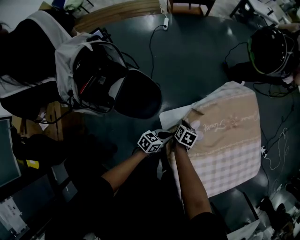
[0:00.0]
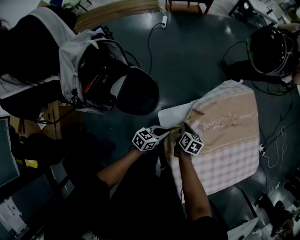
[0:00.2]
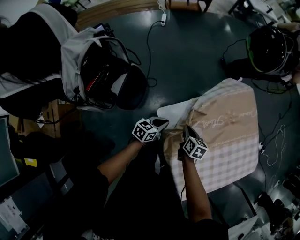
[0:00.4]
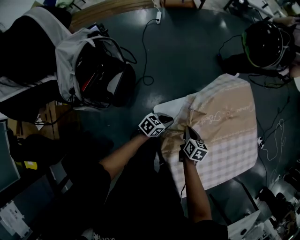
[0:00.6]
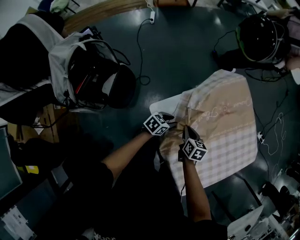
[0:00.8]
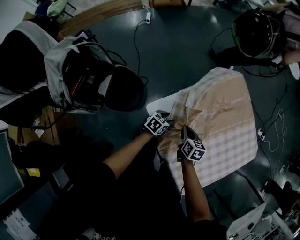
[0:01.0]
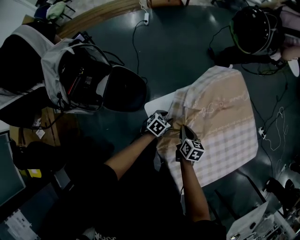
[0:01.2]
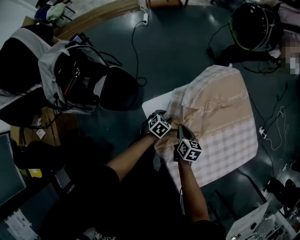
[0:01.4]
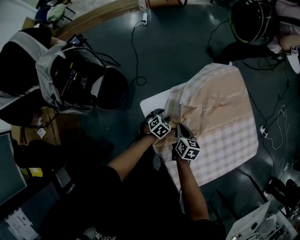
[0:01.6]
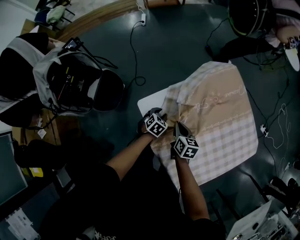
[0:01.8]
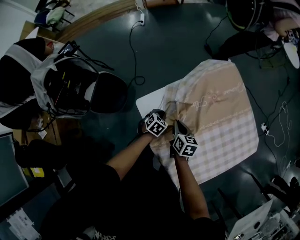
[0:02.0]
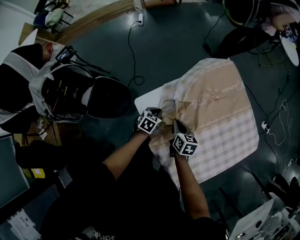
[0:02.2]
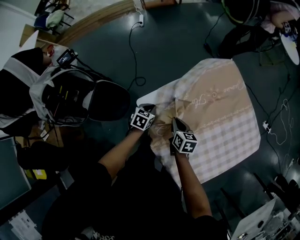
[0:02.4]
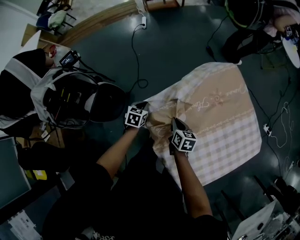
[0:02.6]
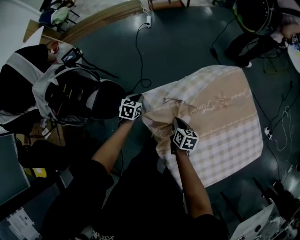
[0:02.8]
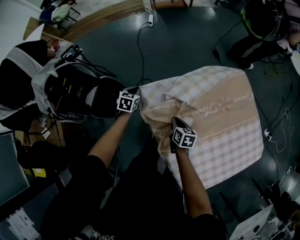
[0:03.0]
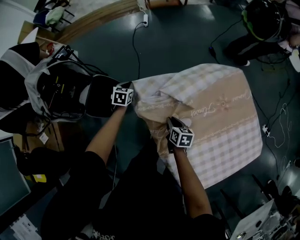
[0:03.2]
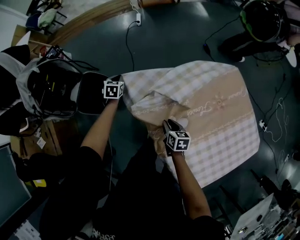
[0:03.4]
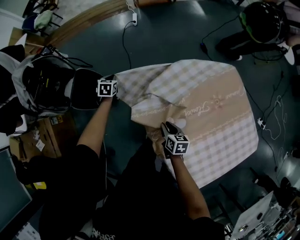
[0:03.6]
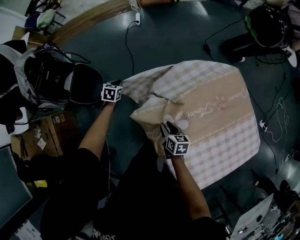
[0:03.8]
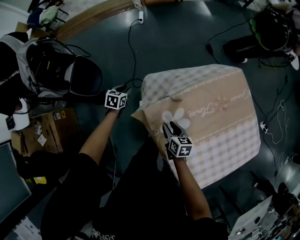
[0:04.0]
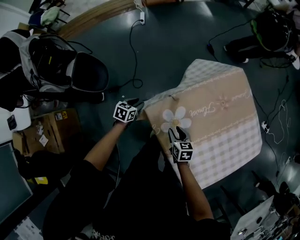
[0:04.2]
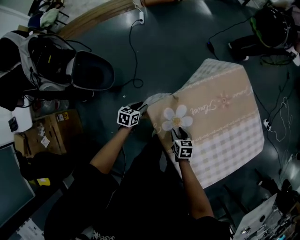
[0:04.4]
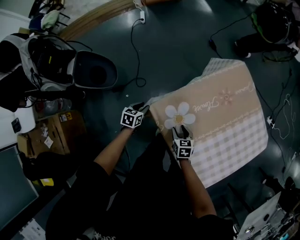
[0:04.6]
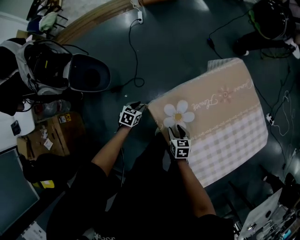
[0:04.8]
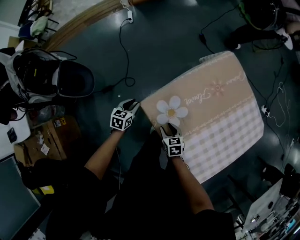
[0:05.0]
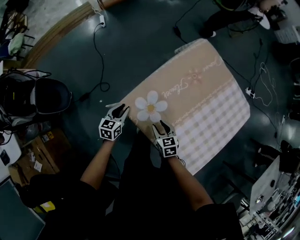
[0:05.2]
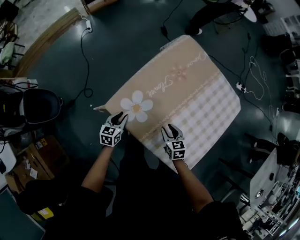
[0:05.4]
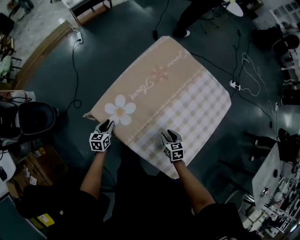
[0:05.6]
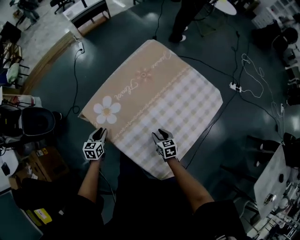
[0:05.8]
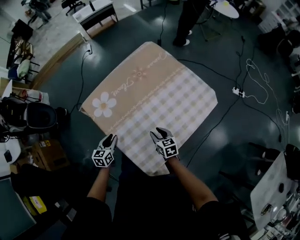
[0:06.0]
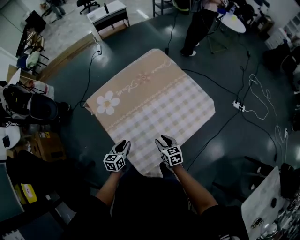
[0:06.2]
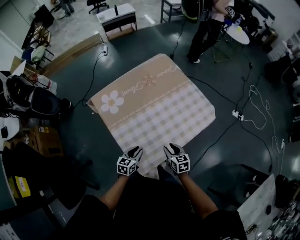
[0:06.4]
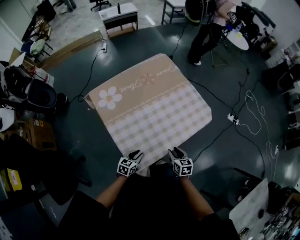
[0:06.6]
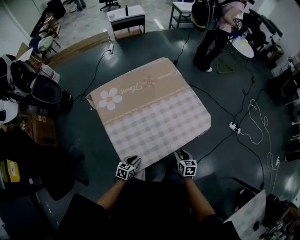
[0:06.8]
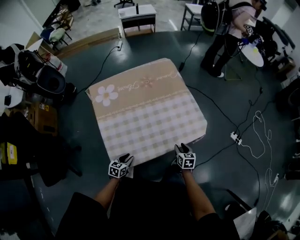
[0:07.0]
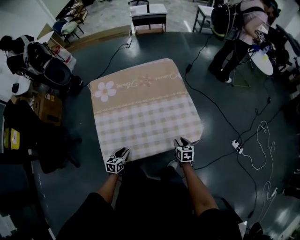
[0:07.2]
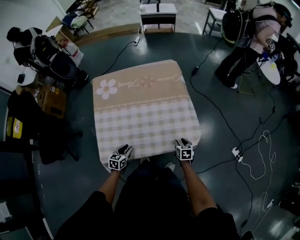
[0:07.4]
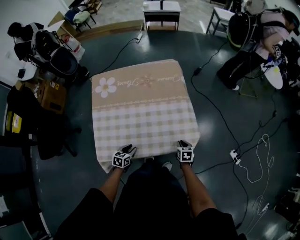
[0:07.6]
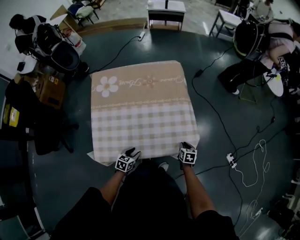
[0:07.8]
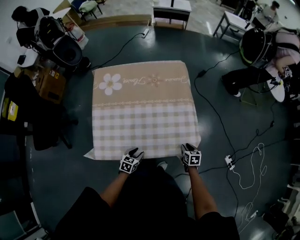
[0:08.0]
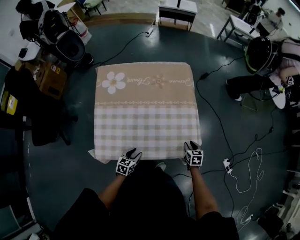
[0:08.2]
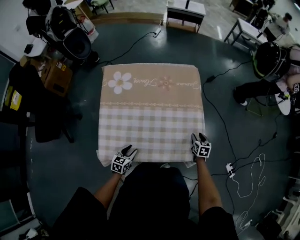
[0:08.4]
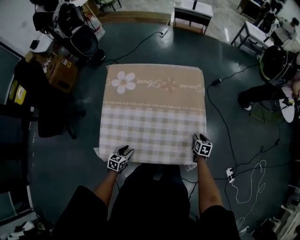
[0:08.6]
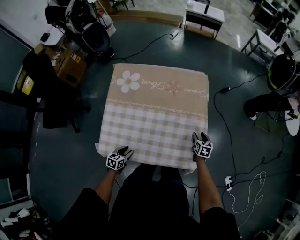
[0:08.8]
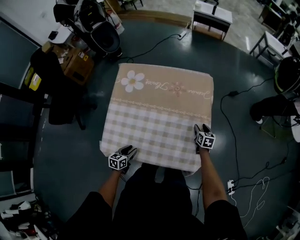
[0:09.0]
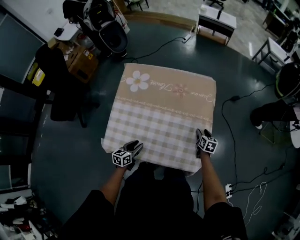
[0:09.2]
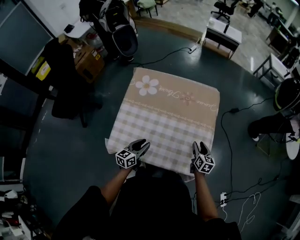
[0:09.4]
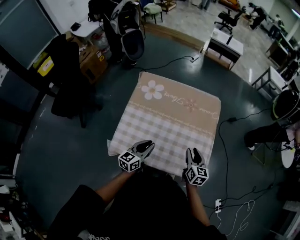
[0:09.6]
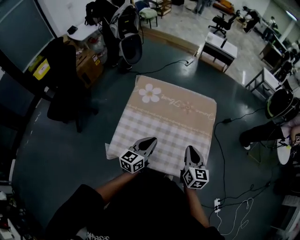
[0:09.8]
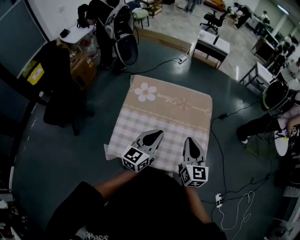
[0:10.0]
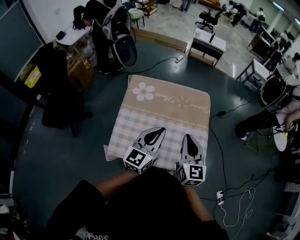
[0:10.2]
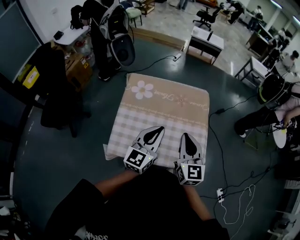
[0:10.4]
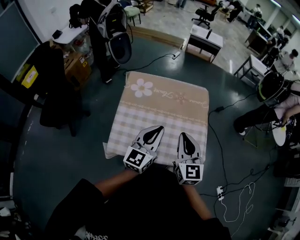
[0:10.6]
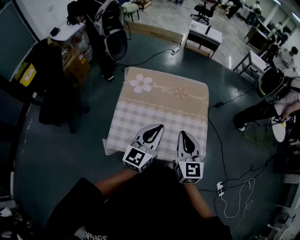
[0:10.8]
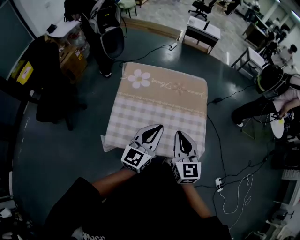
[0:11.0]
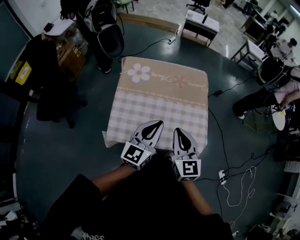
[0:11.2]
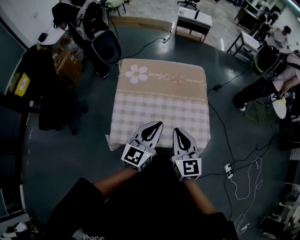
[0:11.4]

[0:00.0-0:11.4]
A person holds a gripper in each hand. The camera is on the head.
0:00.0 to 0:01.4: The left gripper shifts some 5 cm forward, angles its fingers downward, by approximately 30 degrees, and opens. Meanwhile the right gripper travels to the right and upward by some 15 cm.
0:01.4 to 0:02.8: The right gripper changes place by about 5 cm, while the left gripper travels to the left by approximately 20 cm, swivels some 30 degrees, and closes its fingers.
0:02.8 to 0:04.2: The left gripper travels forward and back again, approximately 15 cm each way, and opens. The right gripper opens its fingers.
0:04.2 to 0:05.6: Both grippers move to the right and backward, roughly 25 cm.
0:05.6 to 0:07.2: The left gripper travels upward and back again, some 10 cm each way, and changes its angle by about 30 degrees. The right gripper goes upward and returns, approximately 10 cm each way, and turns by roughly 20 degrees.
0:07.2 to 0:08.6: The right gripper heads forward, covering some 20 cm, and closes, then opens again; the left gripper goes to the right and returns, roughly 15 cm each way.
0:08.6 to 0:10.0: The left gripper travels upward by approximately 40 cm, angles its fingers upward, by some 40 degrees, and closes, while the right gripper shifts roughly 50 cm upward and to the left, angles its fingers upward, by roughly 40 degrees, and closes.
0:10.0 to 0:11.4: The right gripper shifts approximately 10 cm backward and to the left; the left gripper moves backward, some 10 cm.

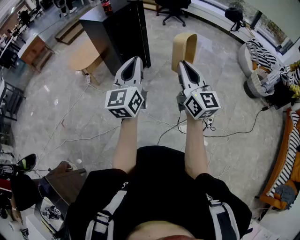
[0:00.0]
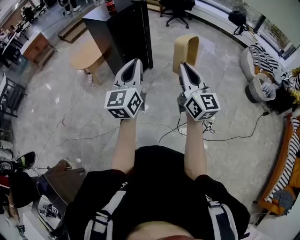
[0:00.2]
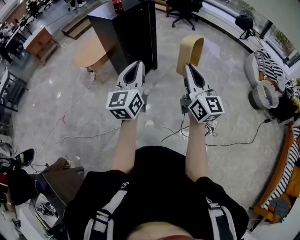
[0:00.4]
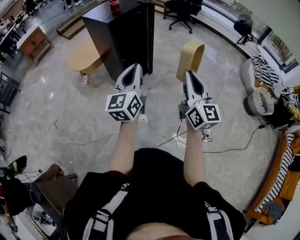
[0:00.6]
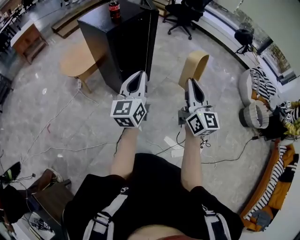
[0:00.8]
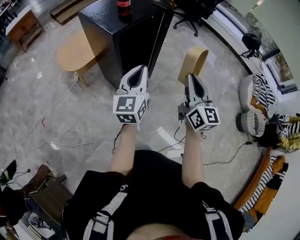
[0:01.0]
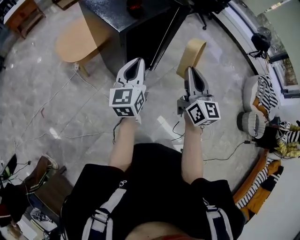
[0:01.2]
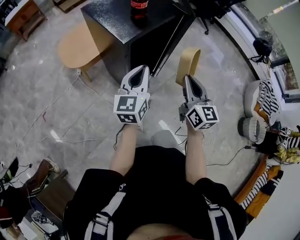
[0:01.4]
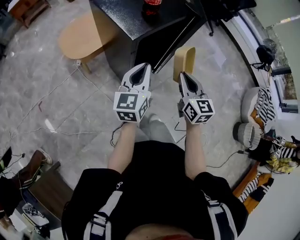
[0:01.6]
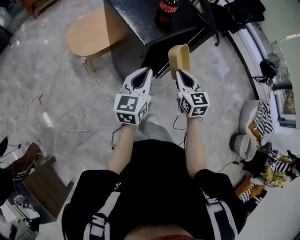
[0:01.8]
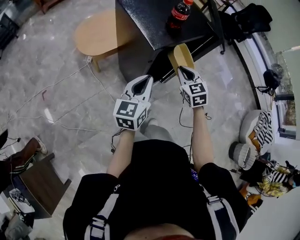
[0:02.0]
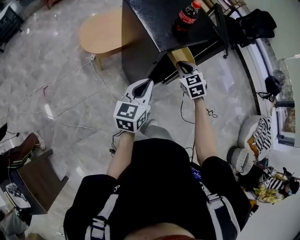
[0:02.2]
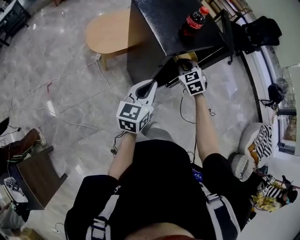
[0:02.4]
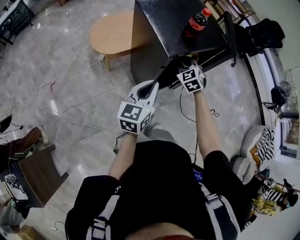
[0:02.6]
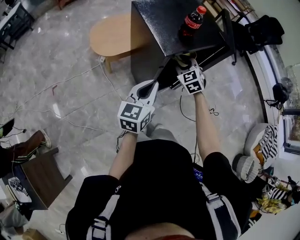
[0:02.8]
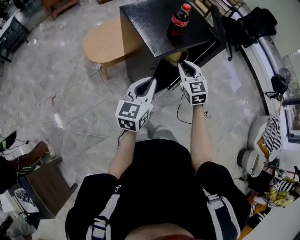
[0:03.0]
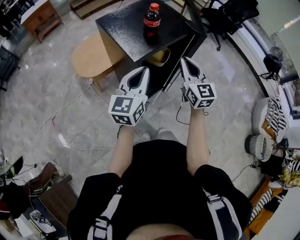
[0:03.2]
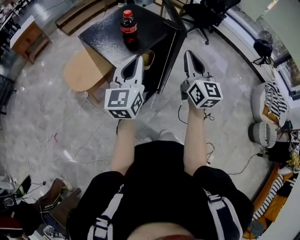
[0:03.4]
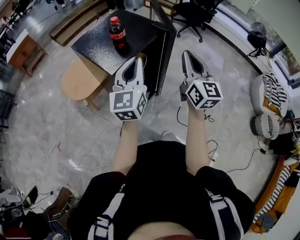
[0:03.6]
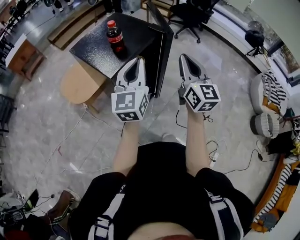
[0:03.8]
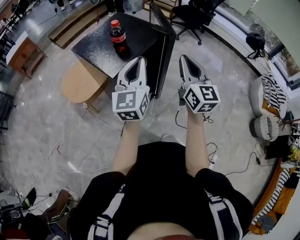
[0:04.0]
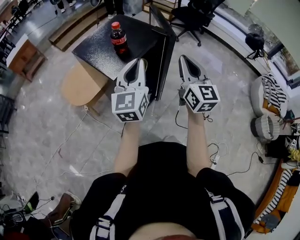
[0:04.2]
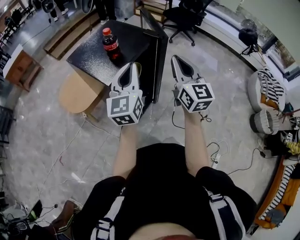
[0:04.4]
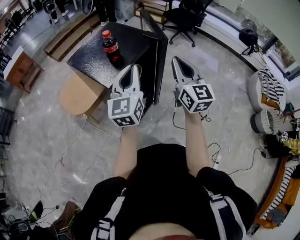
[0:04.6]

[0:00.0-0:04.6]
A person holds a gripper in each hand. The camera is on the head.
0:00.0 to 0:01.6: The pair of grippers is taken forward, about 60 cm. The right gripper swivels approximately 30 degrees.
0:01.6 to 0:03.0: The right gripper moves forward and to the left, approximately 15 cm, and changes its angle by some 30 degrees; the left gripper changes place by some 5 cm.
0:03.0 to 0:04.6: The right gripper is displaced upward and to the right by some 25 cm, and turns by some 40 degrees, while the left gripper heads upward, to the right and forward, covering approximately 20 cm.

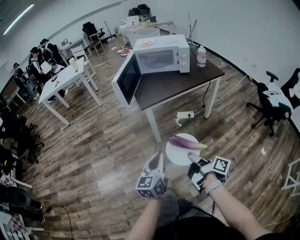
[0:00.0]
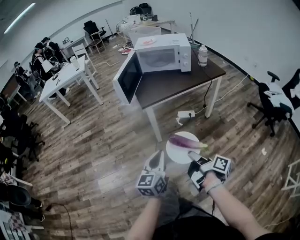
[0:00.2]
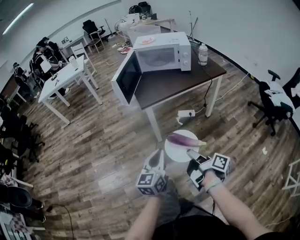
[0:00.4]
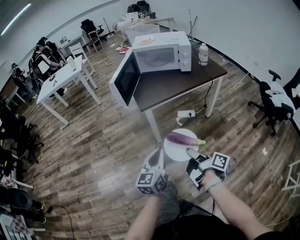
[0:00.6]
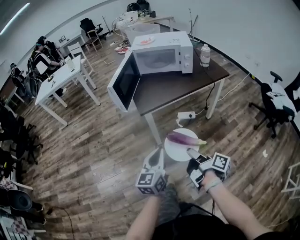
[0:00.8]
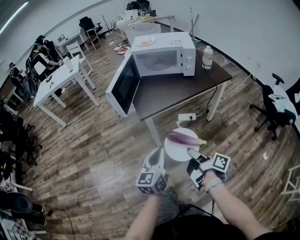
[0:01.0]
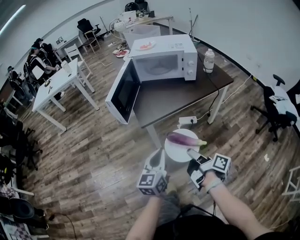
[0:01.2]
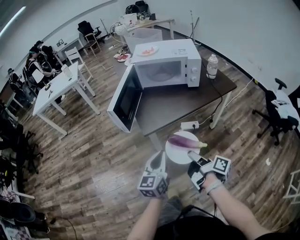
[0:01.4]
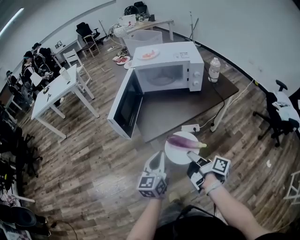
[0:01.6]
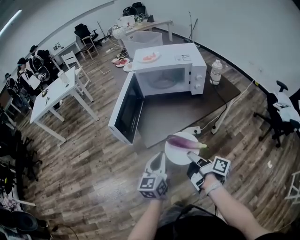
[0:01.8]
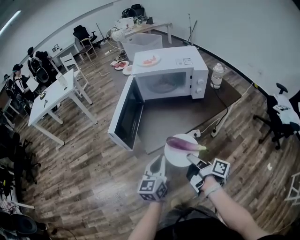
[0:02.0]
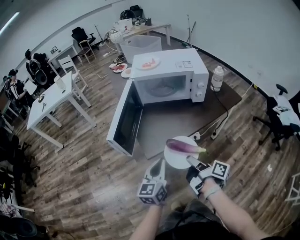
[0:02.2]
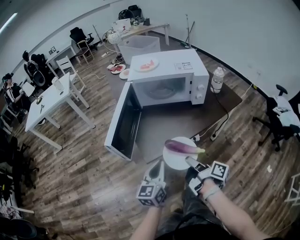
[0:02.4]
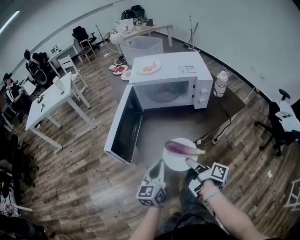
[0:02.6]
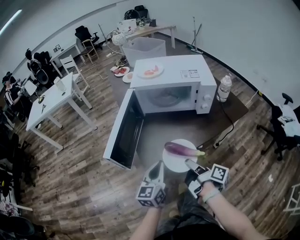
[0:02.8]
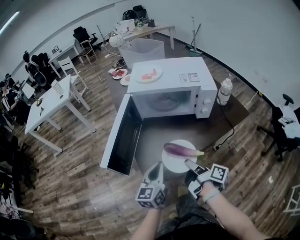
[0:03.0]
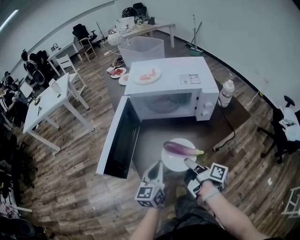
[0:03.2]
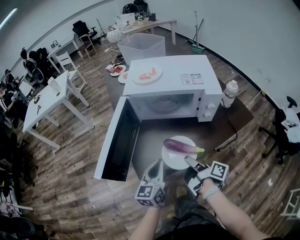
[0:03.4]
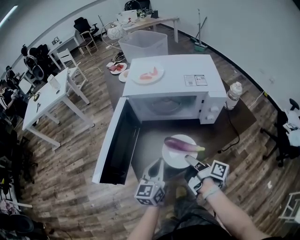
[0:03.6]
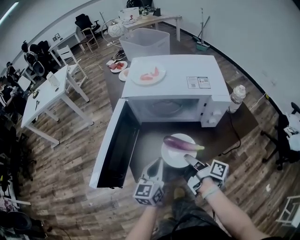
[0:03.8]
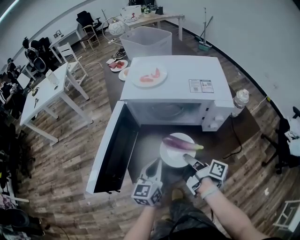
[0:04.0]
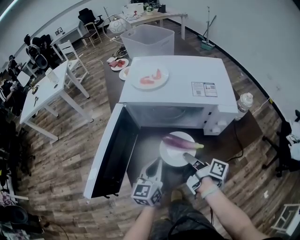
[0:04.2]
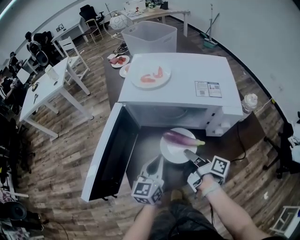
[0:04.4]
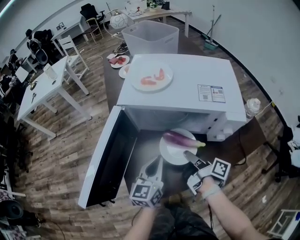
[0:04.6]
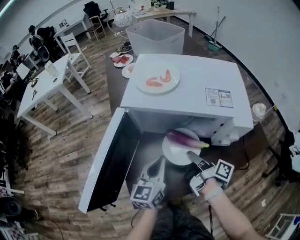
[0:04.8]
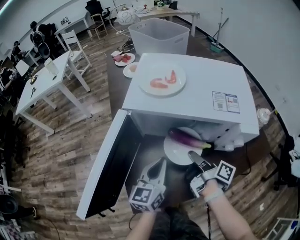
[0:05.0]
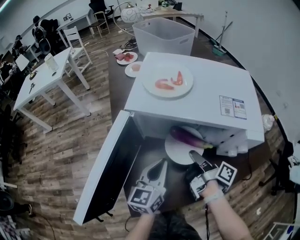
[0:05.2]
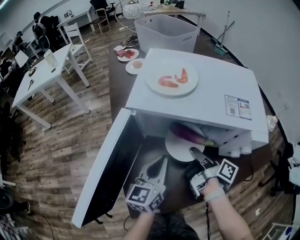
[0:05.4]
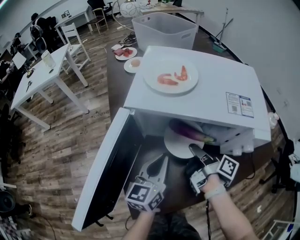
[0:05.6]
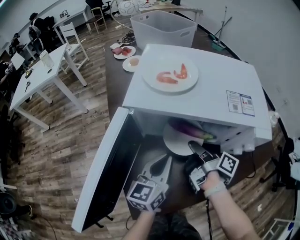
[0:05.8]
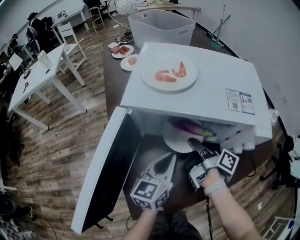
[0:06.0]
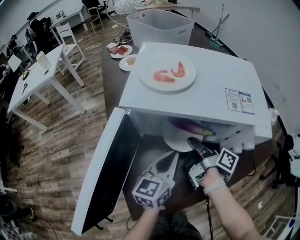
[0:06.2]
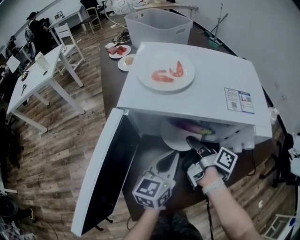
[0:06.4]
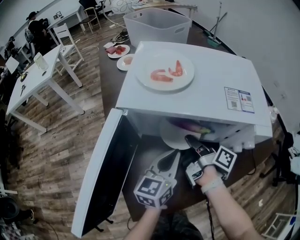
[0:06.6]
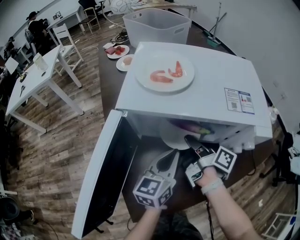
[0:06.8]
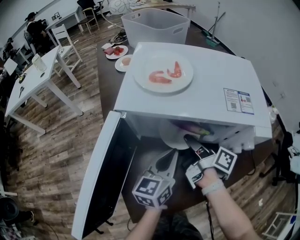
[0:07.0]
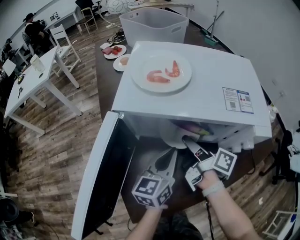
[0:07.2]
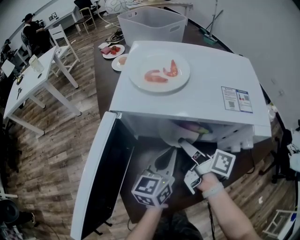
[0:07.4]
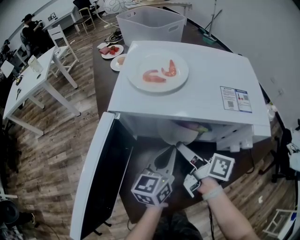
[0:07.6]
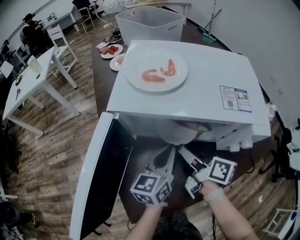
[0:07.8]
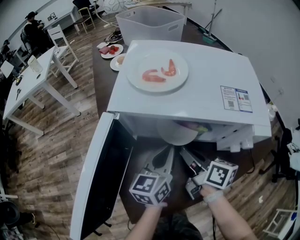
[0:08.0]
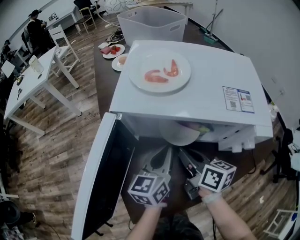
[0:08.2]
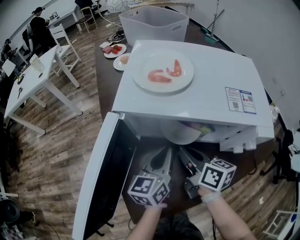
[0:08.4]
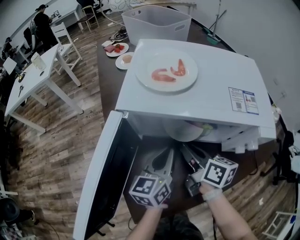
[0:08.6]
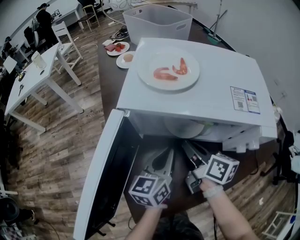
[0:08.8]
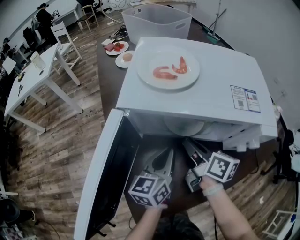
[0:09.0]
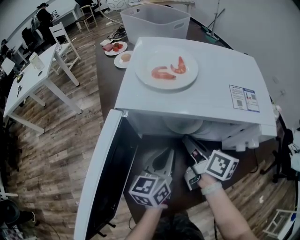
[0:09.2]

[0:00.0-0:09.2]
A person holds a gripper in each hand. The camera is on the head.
0:00.0 to 0:01.6: Both grippers travel together forward, about 25 cm.
0:01.6 to 0:03.0: The two grippers go roughly 20 cm forward.
0:03.0 to 0:04.6: Both grippers travel together forward, some 20 cm.
0:04.6 to 0:06.2: The right gripper travels forward by approximately 10 cm; the left gripper goes approximately 5 cm forward.
0:06.2 to 0:07.6: The right gripper swivels roughly 20 degrees, and opens its fingers.
0:07.6 to 0:09.2: The right gripper closes.
